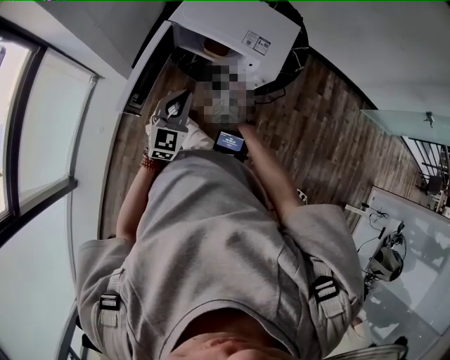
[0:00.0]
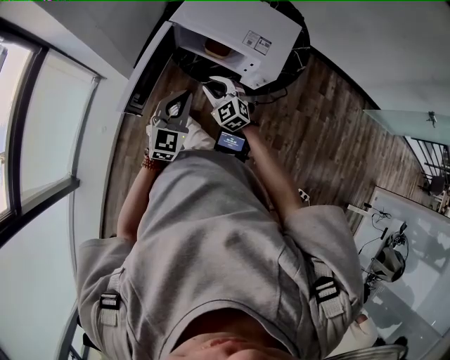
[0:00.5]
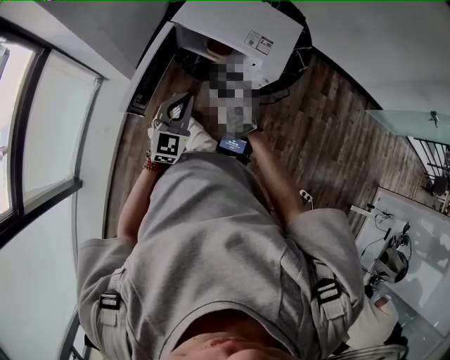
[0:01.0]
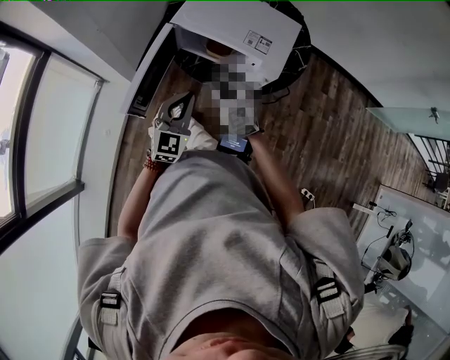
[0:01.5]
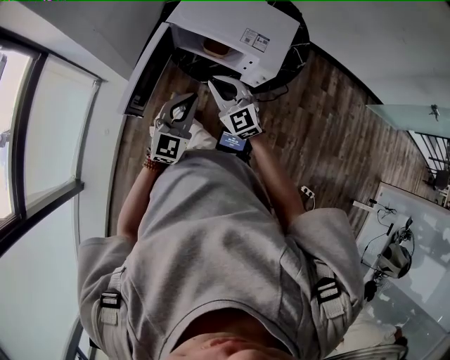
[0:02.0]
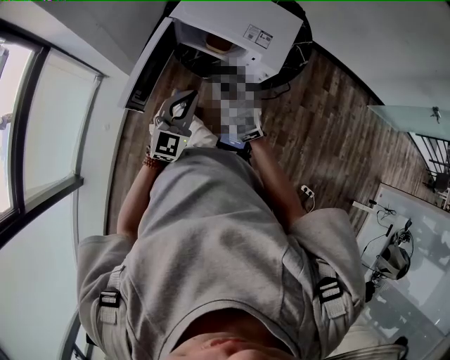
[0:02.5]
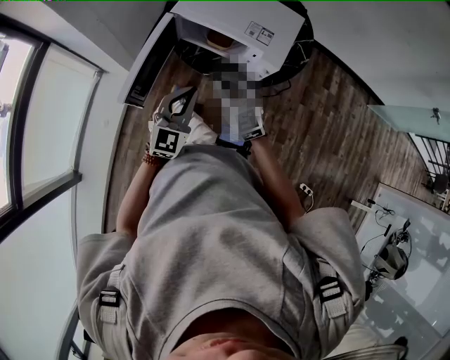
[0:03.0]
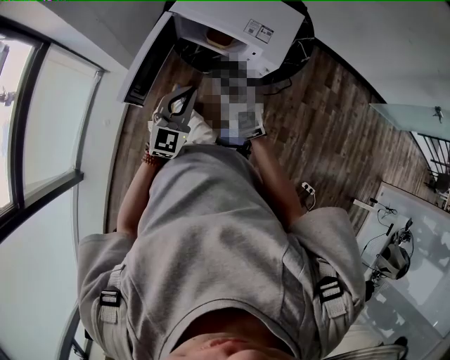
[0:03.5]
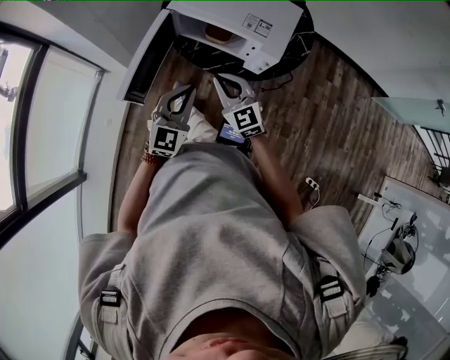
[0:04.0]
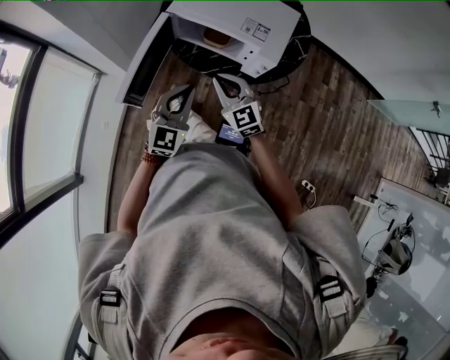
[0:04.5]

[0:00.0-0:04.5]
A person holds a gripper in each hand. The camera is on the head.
0.0 to 2.0 s: The right gripper shifts some 15 cm upward, and swivels some 30 degrees.
2.0 to 4.5 s: The grippers move only a little.

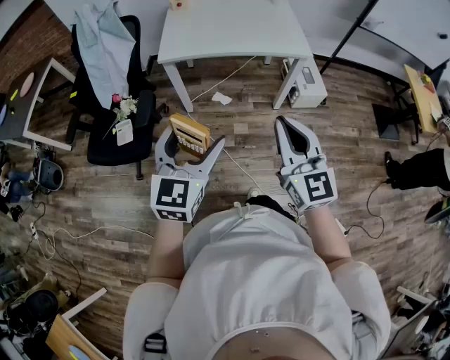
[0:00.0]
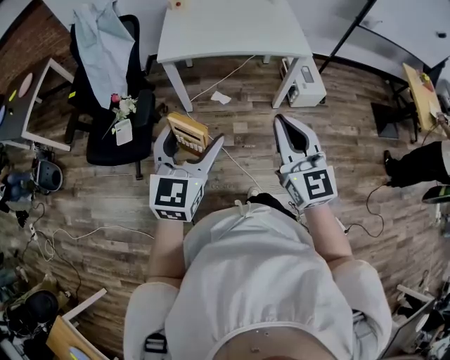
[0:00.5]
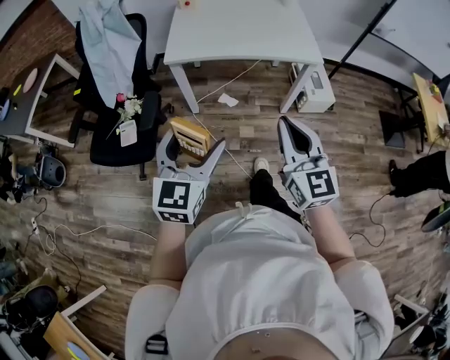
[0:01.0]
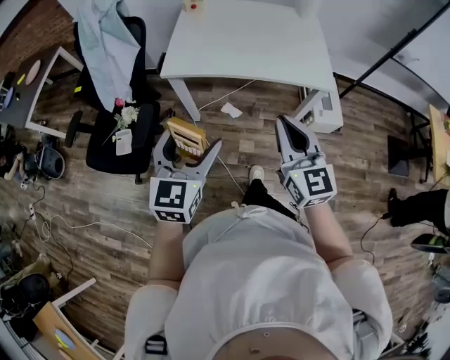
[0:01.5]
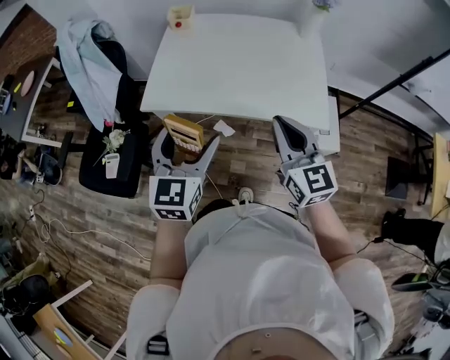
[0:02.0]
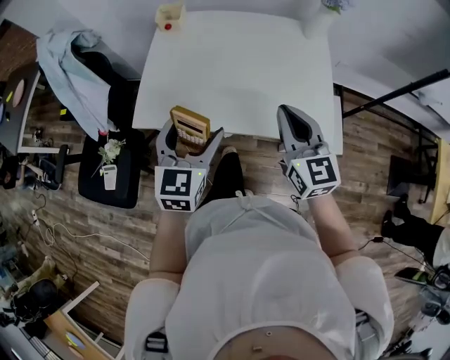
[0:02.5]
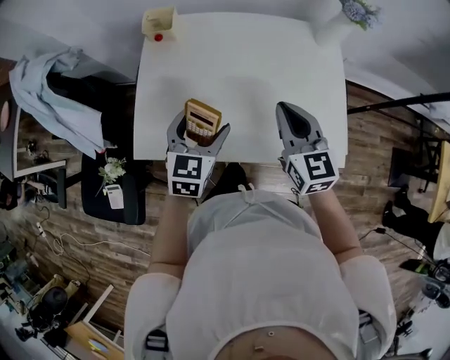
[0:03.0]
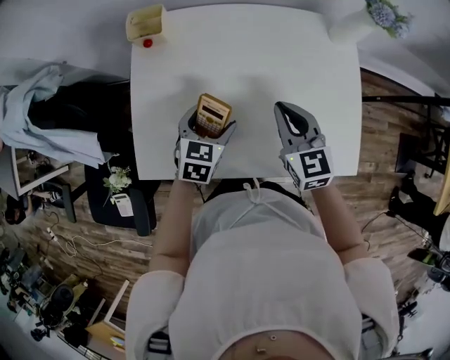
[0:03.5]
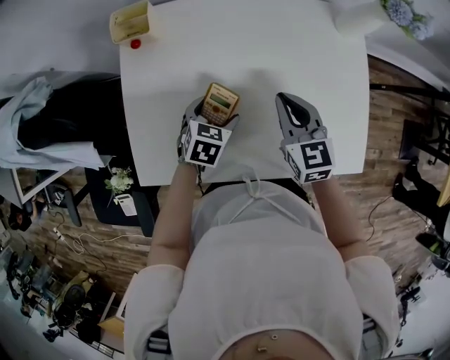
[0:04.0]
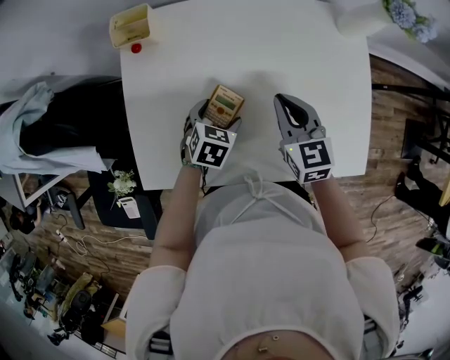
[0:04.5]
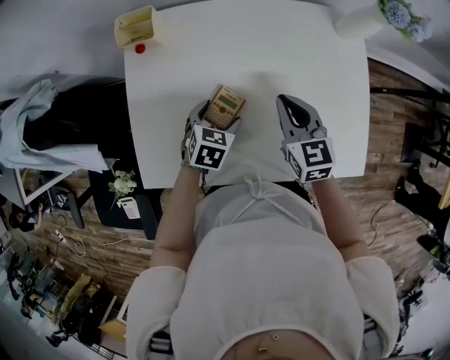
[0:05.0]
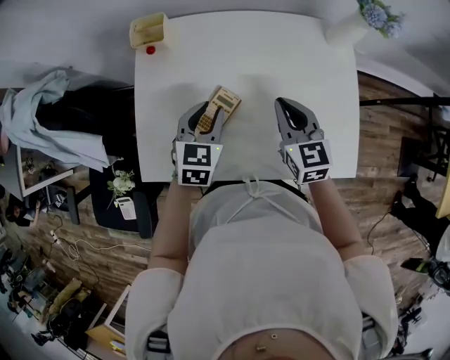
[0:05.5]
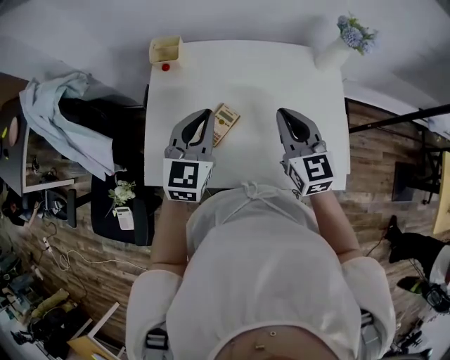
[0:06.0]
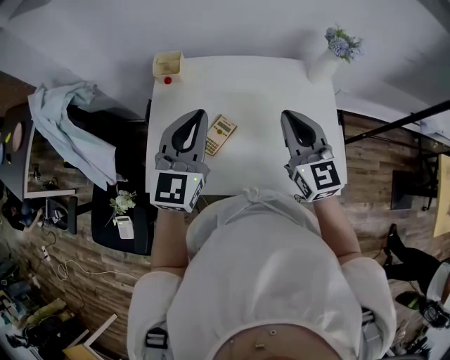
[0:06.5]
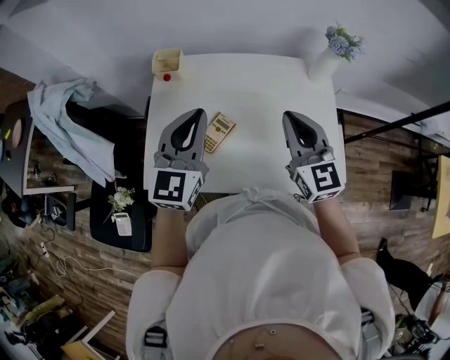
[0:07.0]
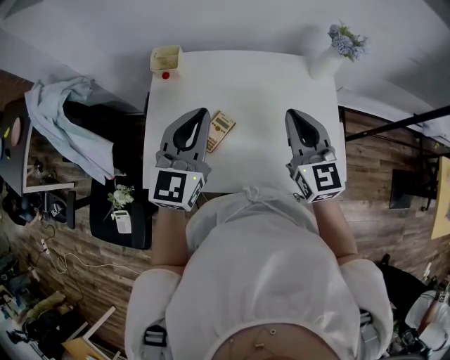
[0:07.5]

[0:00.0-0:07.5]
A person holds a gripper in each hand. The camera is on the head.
0.0 to 2.0 s: The two grippers go about 40 cm forward.
2.0 to 4.0 s: Both grippers move forward and downward, approximately 50 cm. The right gripper rotates some 20 degrees. Meanwhile the left gripper tips its fingers downward by about 40 degrees.
4.0 to 5.5 s: The left gripper moves upward, approximately 15 cm, rotates roughly 20 degrees, and closes up.
5.5 to 7.5 s: The two grippers go about 20 cm upward. The left gripper angles its fingers upward, by some 30 degrees.

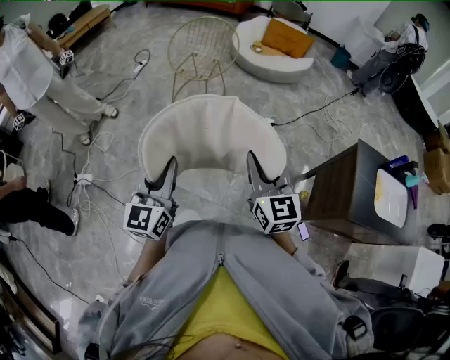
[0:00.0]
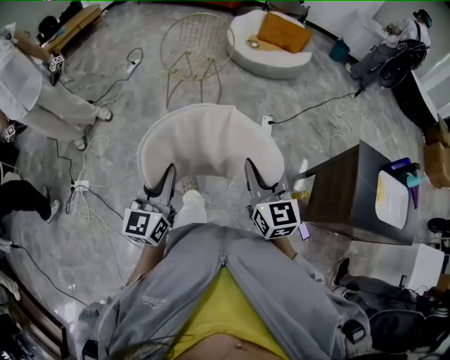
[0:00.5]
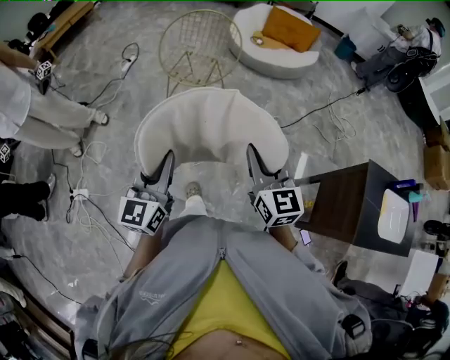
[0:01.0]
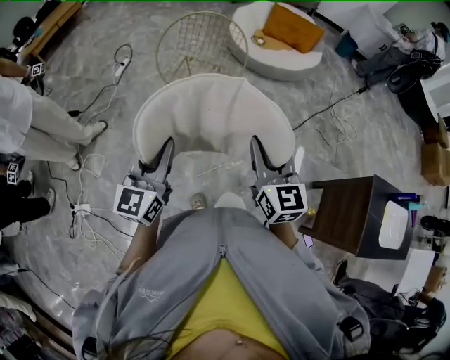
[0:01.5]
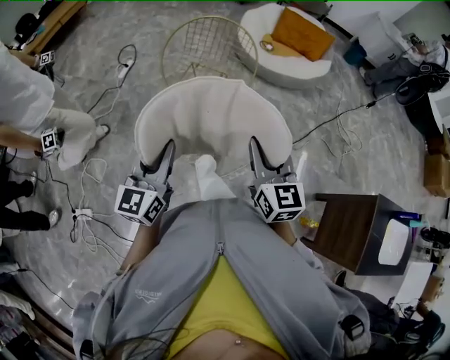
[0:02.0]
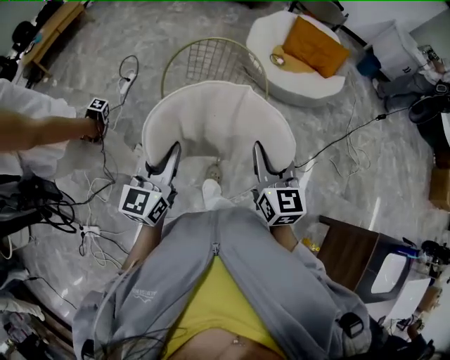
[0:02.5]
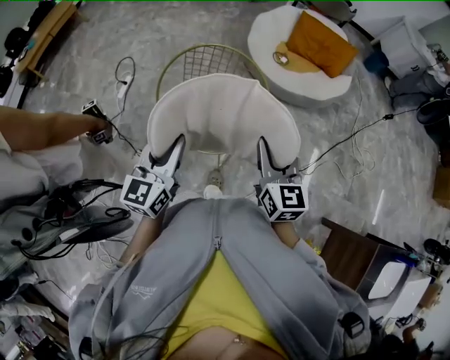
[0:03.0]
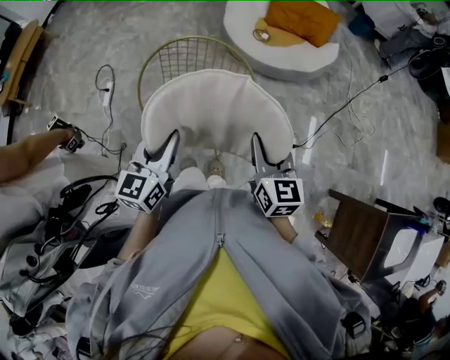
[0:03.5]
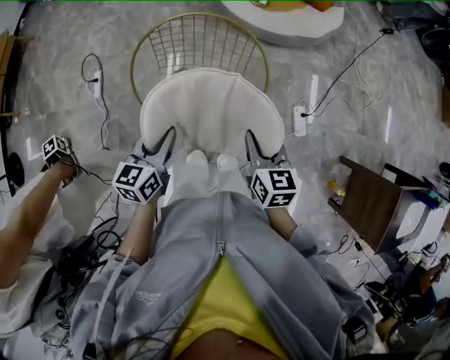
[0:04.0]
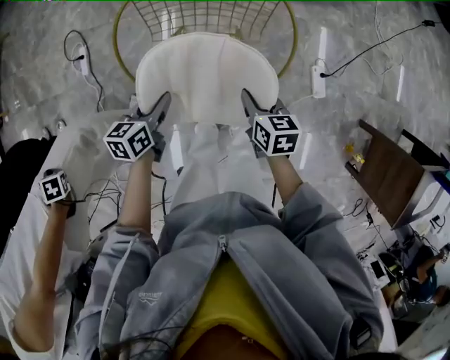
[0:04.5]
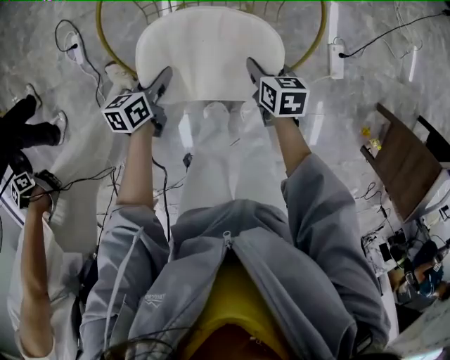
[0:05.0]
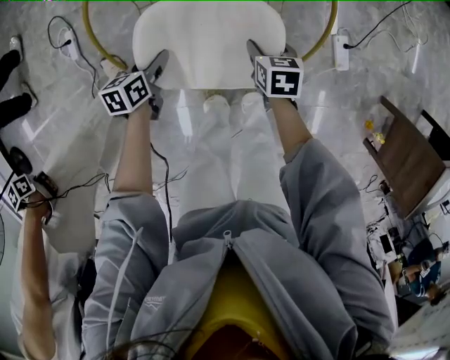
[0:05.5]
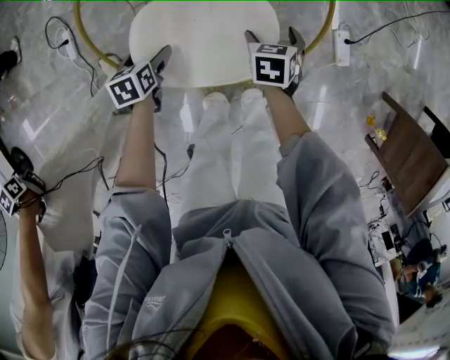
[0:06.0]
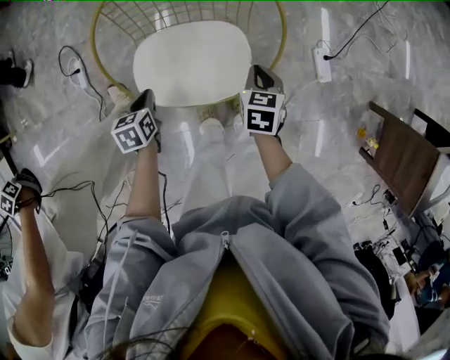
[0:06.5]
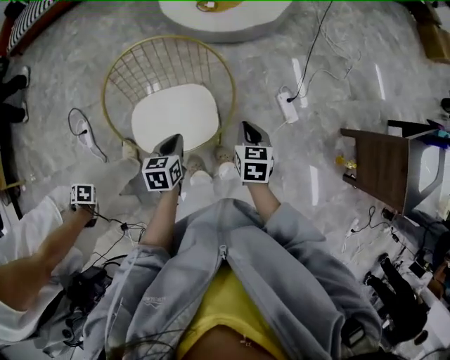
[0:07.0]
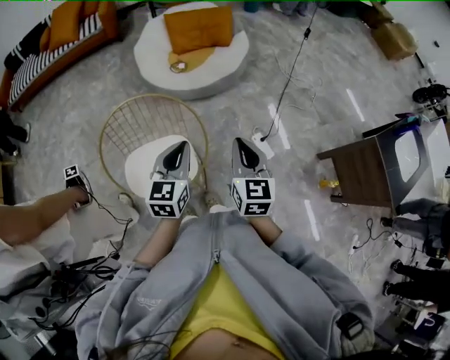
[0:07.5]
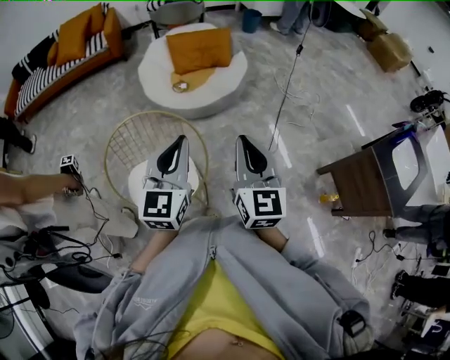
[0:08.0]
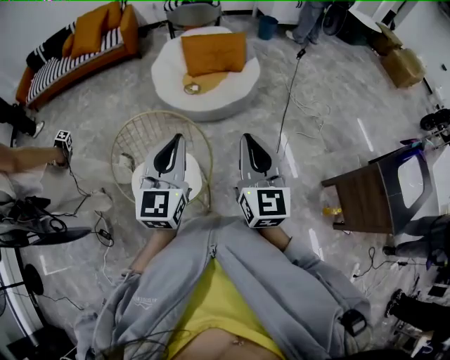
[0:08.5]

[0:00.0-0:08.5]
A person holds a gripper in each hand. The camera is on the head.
0.0 to 2.0 s: The pair of grippers is taken forward, about 40 cm. The two grippers go approximately 25 cm downward.
2.0 to 4.0 s: Both grippers travel together downward and to the right, approximately 15 cm. The right gripper travels forward and back again, roughly 30 cm each way, and swivels roughly 20 degrees. The left gripper moves about 30 cm forward and comes back, and turns by roughly 30 degrees.
4.0 to 6.5 s: The grippers both shift downward by roughly 25 cm. The left gripper points its fingers approximately 30 degrees further downward, and opens, then closes again; the right gripper changes its angle by roughly 20 degrees, and opens, then closes again.
6.5 to 8.5 s: The right gripper goes some 50 cm upward, and tips its fingers upward by some 50 degrees. Meanwhile the left gripper shifts roughly 70 cm upward and to the right, and points its fingers about 60 degrees further upward.

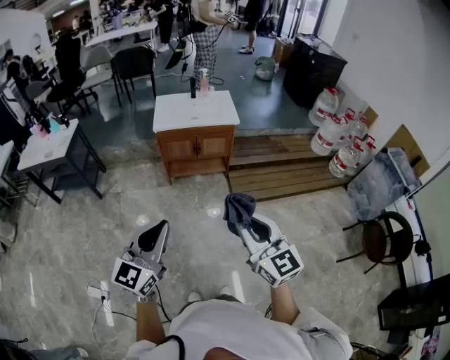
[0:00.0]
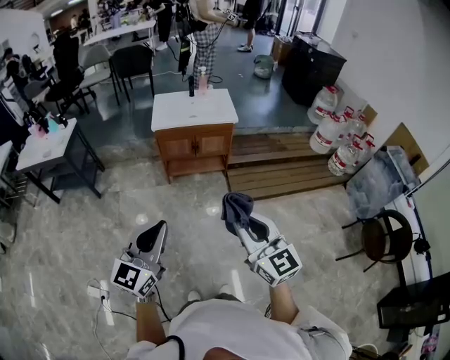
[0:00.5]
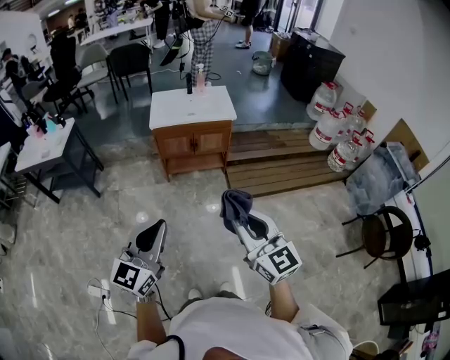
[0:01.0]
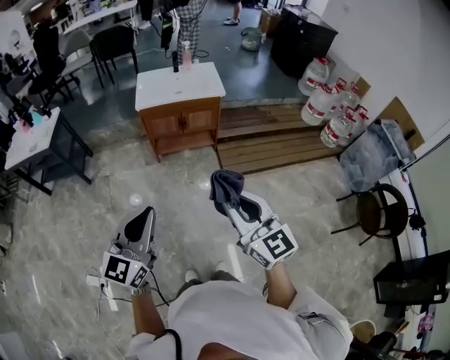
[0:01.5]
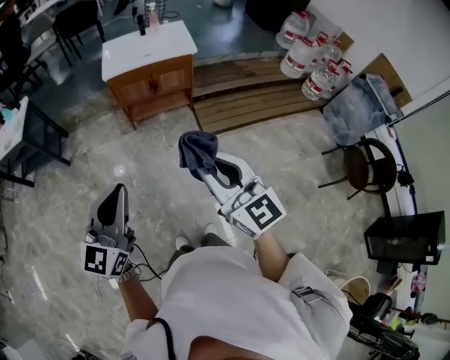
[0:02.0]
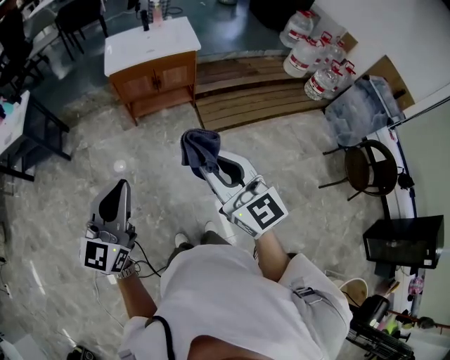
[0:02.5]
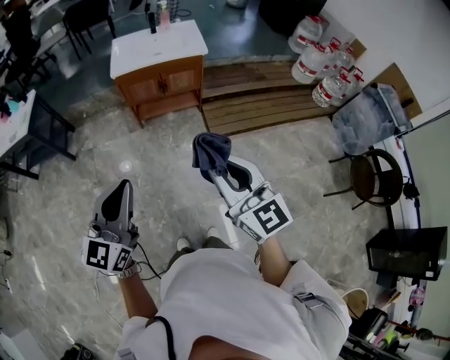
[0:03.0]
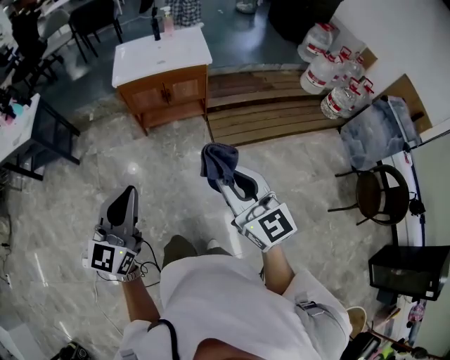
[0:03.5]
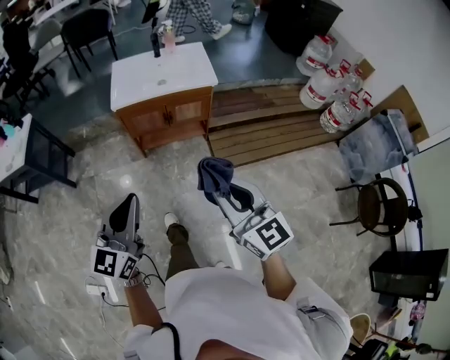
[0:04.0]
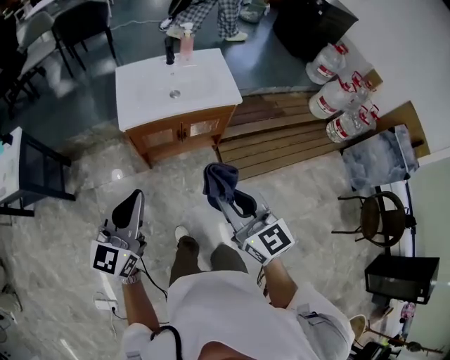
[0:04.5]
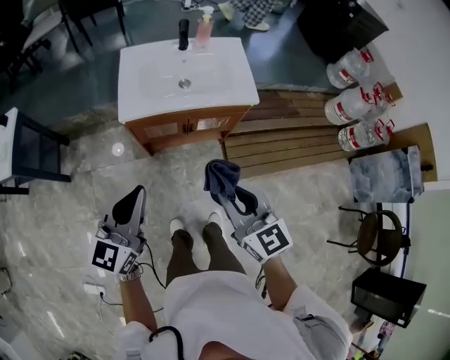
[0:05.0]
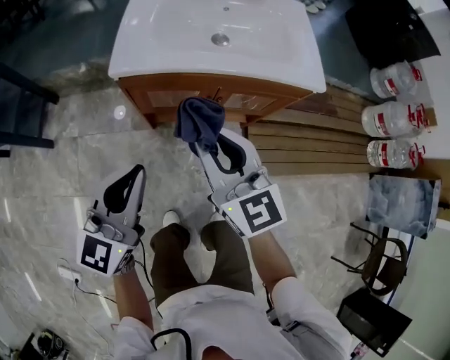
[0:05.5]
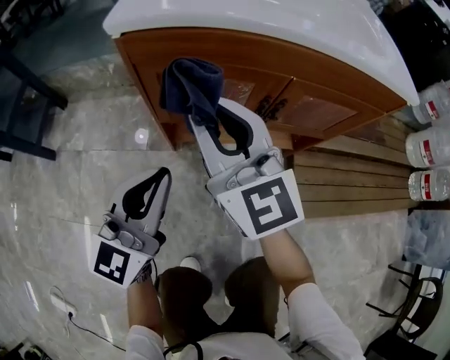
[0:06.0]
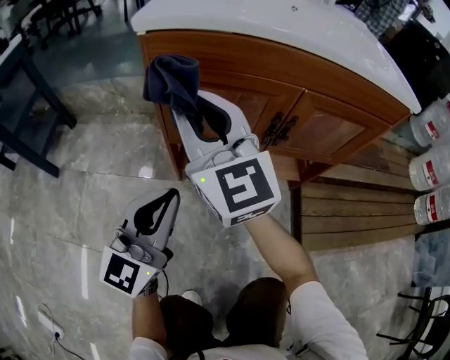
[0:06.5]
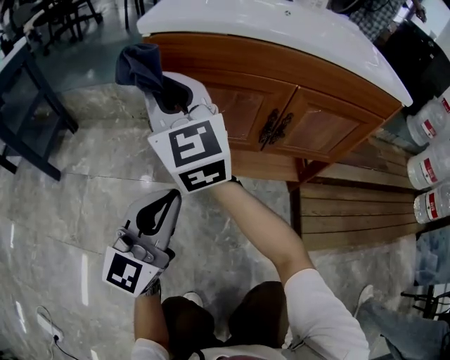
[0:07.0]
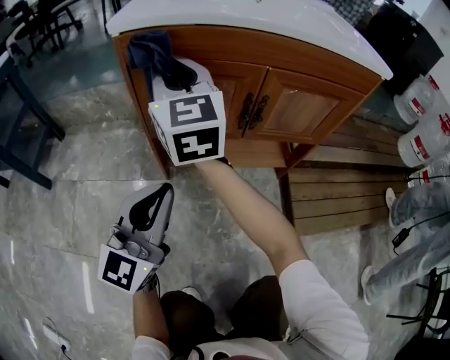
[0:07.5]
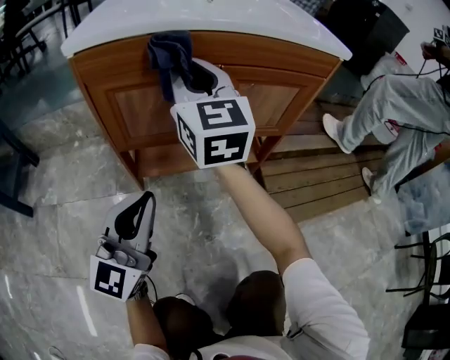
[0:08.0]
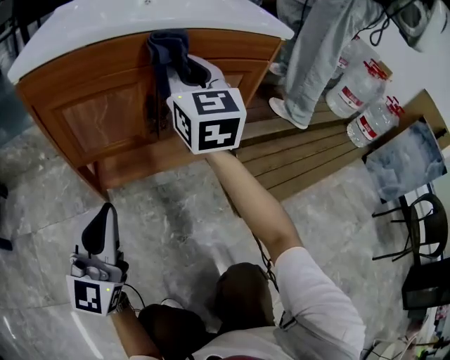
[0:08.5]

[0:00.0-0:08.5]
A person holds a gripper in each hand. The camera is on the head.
0.0 to 2.0 s: The grippers make only small movements.
2.0 to 4.0 s: Both grippers travel together forward, about 20 cm.
4.0 to 6.5 s: The pair of grippers is taken forward and to the left, approximately 50 cm. The two grippers go approximately 60 cm downward. The right gripper changes its angle by some 20 degrees.
6.5 to 8.5 s: The right gripper shifts about 25 cm to the right, and changes its angle by some 30 degrees, while the left gripper is displaced to the right by roughly 5 cm.
